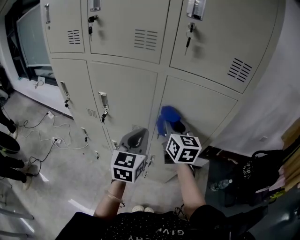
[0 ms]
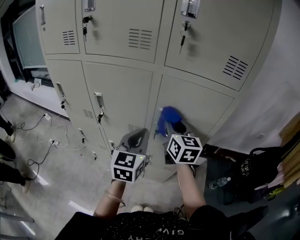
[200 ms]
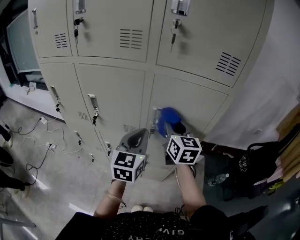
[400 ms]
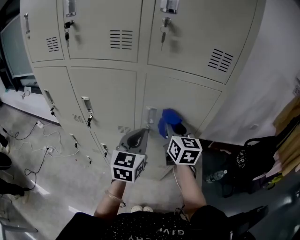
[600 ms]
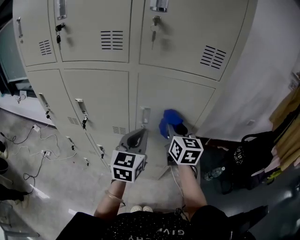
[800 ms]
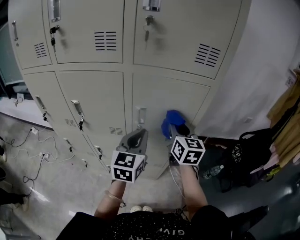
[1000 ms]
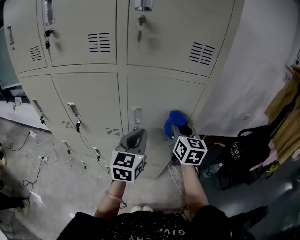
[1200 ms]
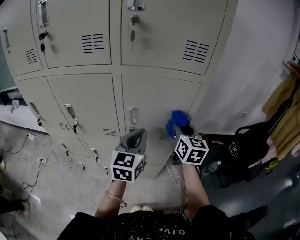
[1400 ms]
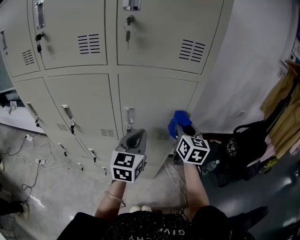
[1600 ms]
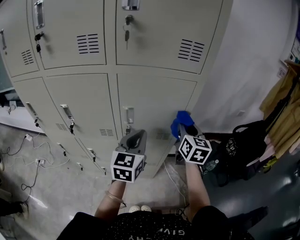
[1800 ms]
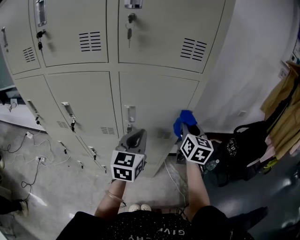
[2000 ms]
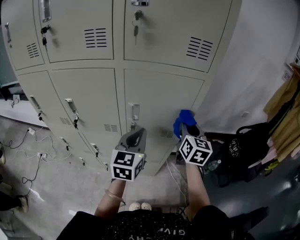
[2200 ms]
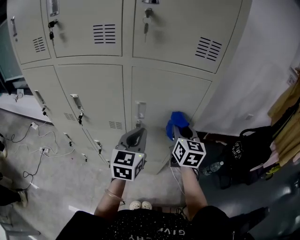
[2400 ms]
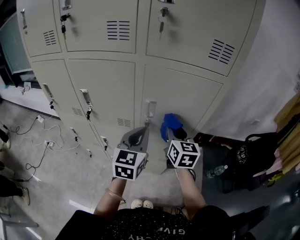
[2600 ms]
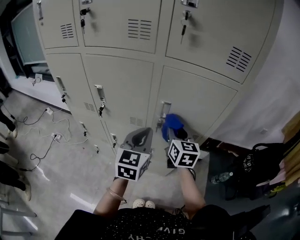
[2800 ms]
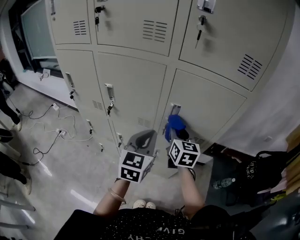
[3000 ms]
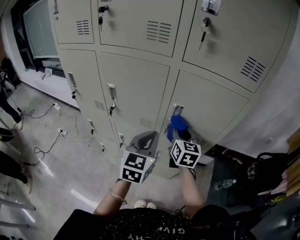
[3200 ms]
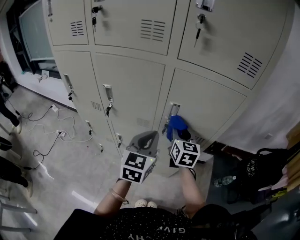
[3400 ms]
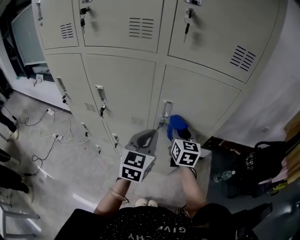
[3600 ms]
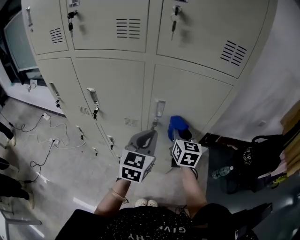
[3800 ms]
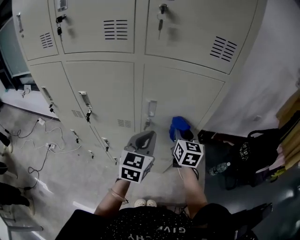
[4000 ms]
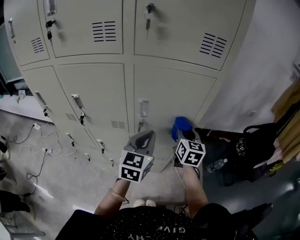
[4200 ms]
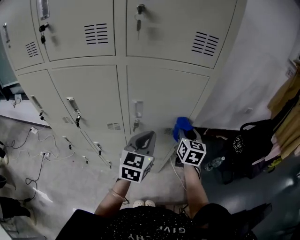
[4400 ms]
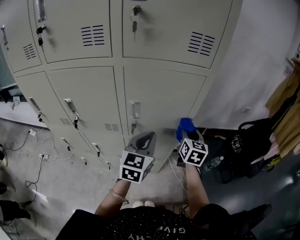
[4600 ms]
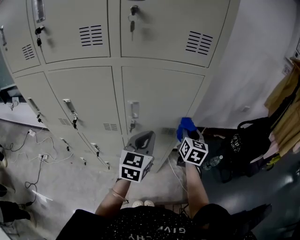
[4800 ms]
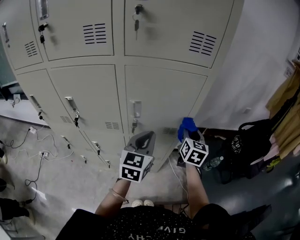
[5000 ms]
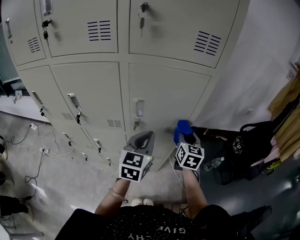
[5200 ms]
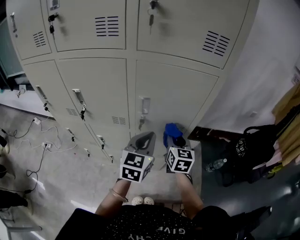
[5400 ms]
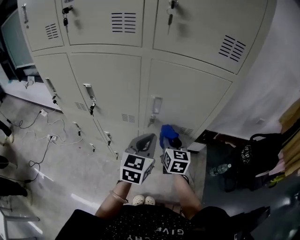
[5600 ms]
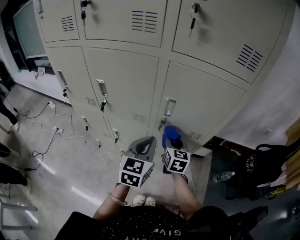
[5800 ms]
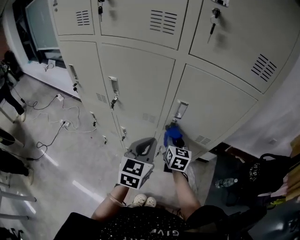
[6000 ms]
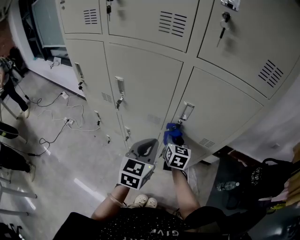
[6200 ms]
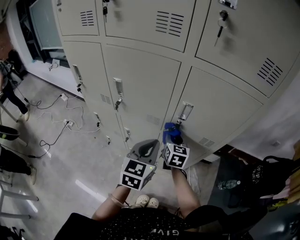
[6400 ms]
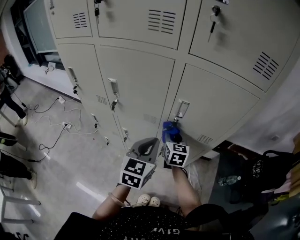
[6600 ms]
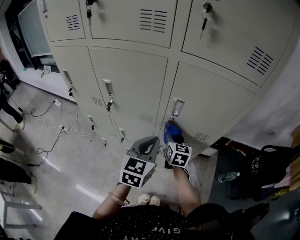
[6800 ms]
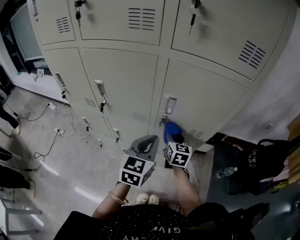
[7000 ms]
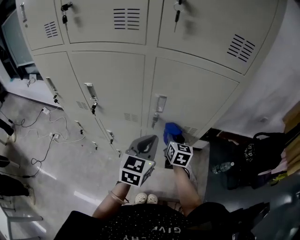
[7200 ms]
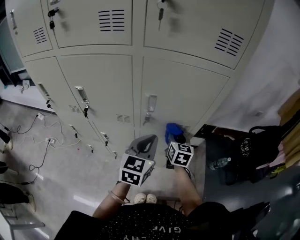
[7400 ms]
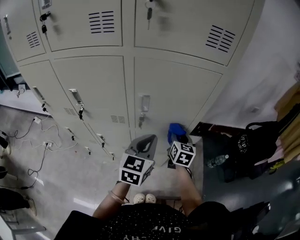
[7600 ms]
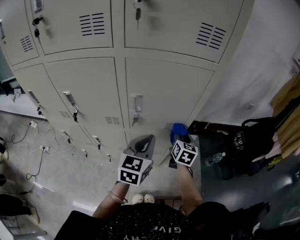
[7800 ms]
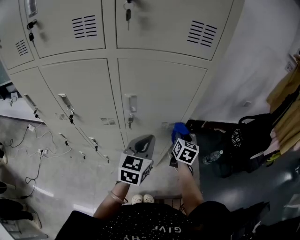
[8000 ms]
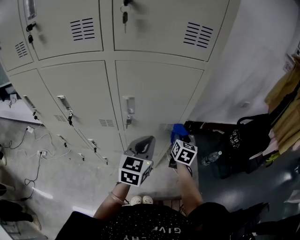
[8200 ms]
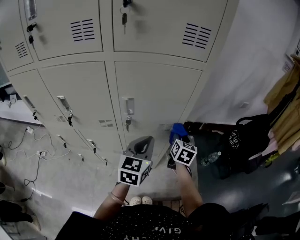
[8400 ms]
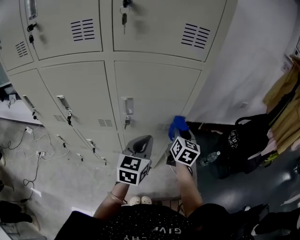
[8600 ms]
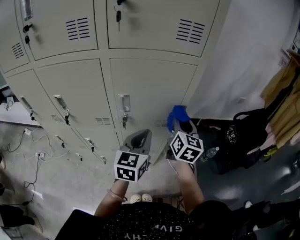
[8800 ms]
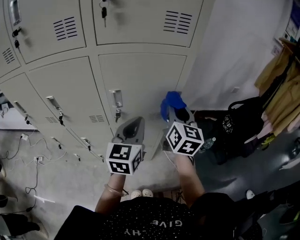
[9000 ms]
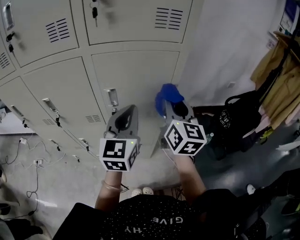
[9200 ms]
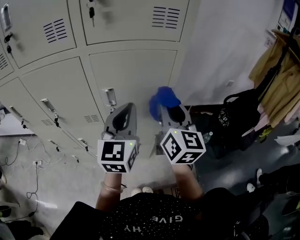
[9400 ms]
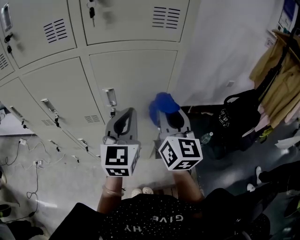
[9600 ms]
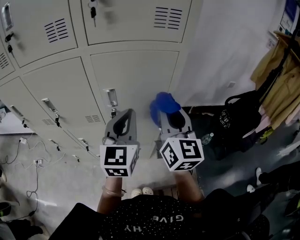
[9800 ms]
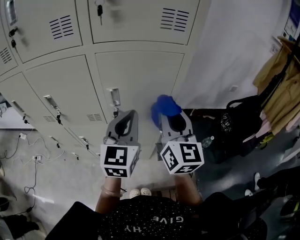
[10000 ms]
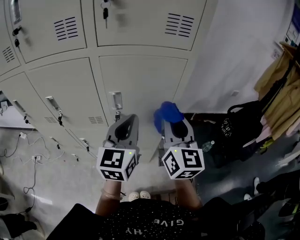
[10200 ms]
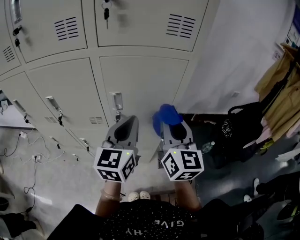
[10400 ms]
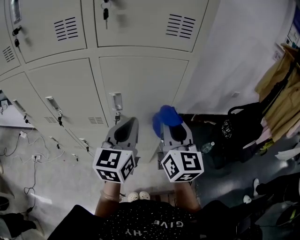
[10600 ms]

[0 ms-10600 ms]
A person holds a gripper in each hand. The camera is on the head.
0 ms to 1600 ms: The left gripper goes about 10 cm to the right, while the right gripper moves to the right, some 20 cm, and swivels approximately 20 degrees.
1600 ms to 3000 ms: The left gripper shifts some 10 cm to the left, while the right gripper goes some 20 cm to the left.
3000 ms to 4600 ms: The right gripper shifts about 20 cm to the right, and turns by about 20 degrees. The left gripper moves to the right, about 10 cm.
4600 ms to 6000 ms: The right gripper goes approximately 20 cm to the left, and turns by approximately 20 degrees. The left gripper moves to the left and backward, some 15 cm.
6000 ms to 7600 ms: Both grippers travel together to the right, approximately 15 cm.
7600 ms to 9000 ms: The right gripper heads upward, covering approximately 20 cm, and swivels about 20 degrees, while the left gripper shifts some 5 cm upward.
9000 ms to 10600 ms: The right gripper travels backward by some 5 cm.

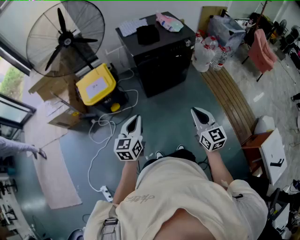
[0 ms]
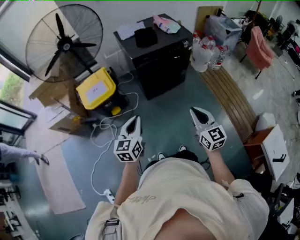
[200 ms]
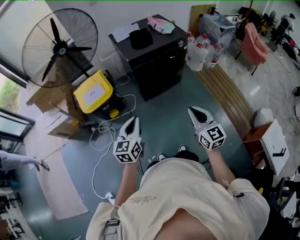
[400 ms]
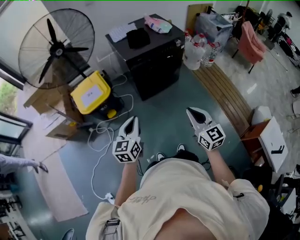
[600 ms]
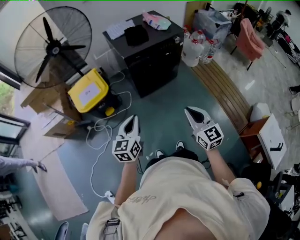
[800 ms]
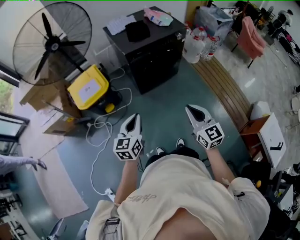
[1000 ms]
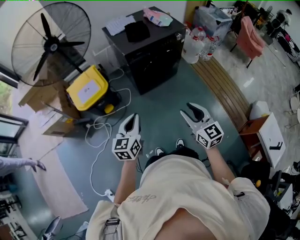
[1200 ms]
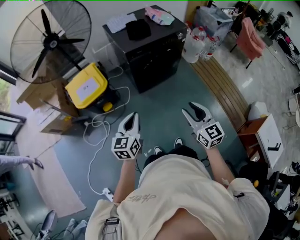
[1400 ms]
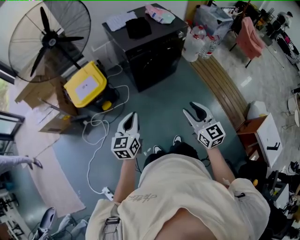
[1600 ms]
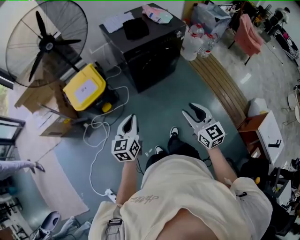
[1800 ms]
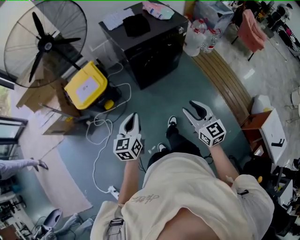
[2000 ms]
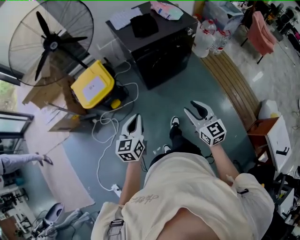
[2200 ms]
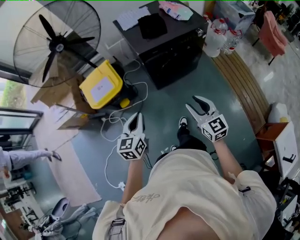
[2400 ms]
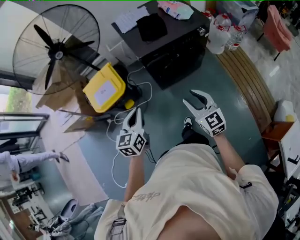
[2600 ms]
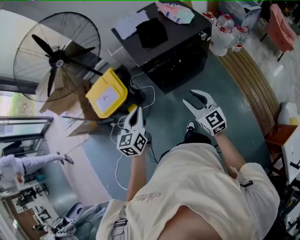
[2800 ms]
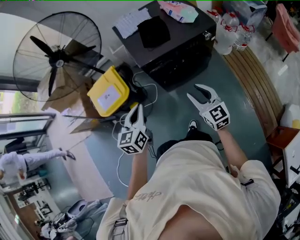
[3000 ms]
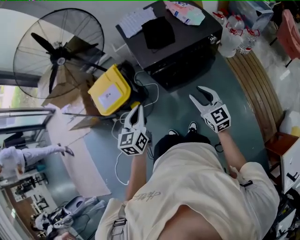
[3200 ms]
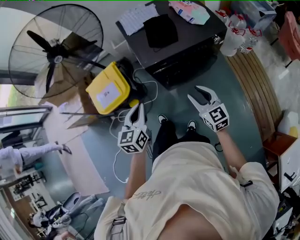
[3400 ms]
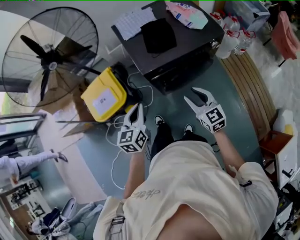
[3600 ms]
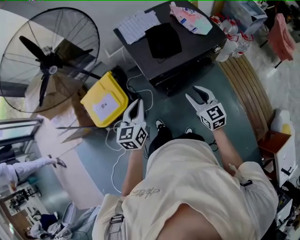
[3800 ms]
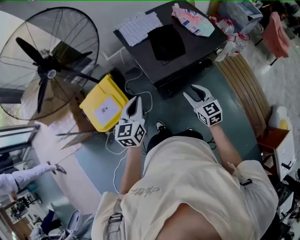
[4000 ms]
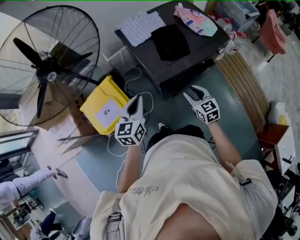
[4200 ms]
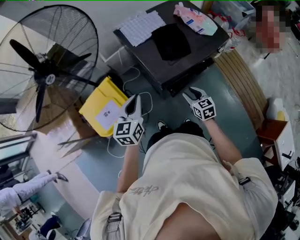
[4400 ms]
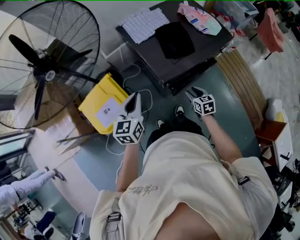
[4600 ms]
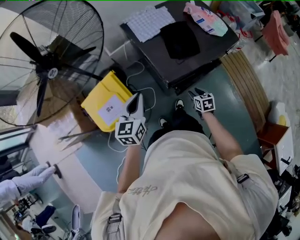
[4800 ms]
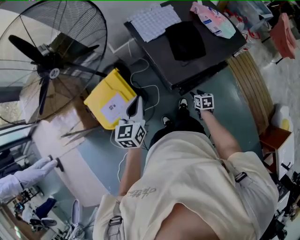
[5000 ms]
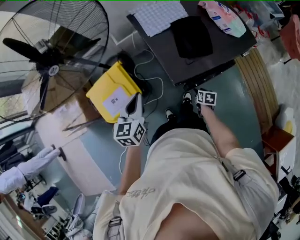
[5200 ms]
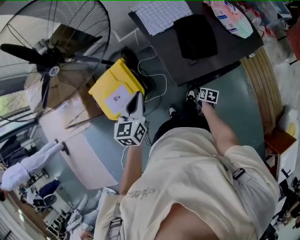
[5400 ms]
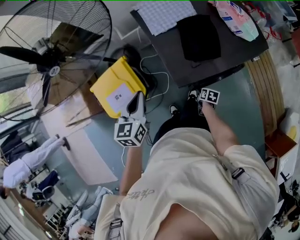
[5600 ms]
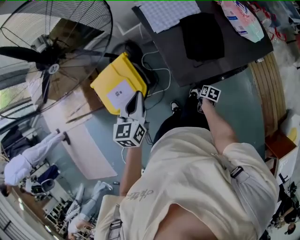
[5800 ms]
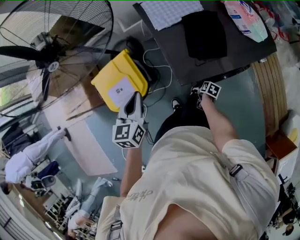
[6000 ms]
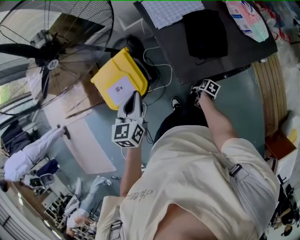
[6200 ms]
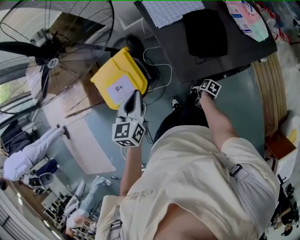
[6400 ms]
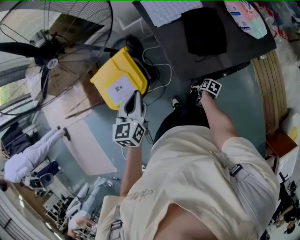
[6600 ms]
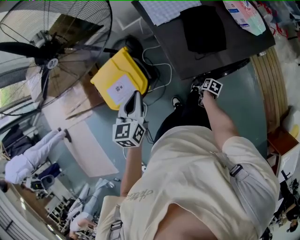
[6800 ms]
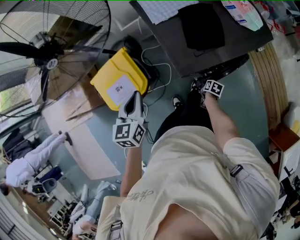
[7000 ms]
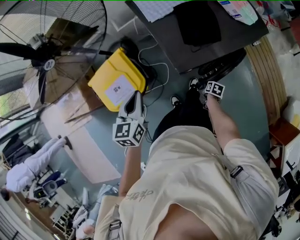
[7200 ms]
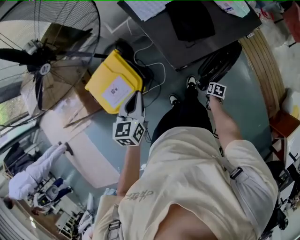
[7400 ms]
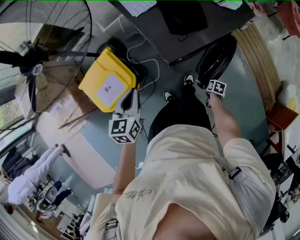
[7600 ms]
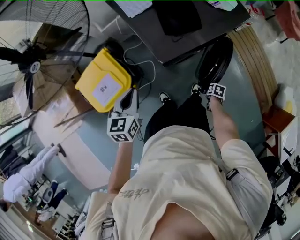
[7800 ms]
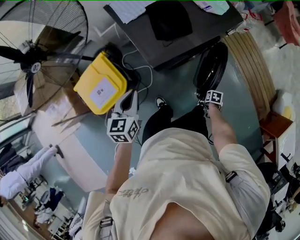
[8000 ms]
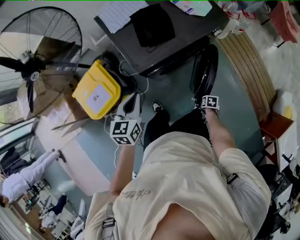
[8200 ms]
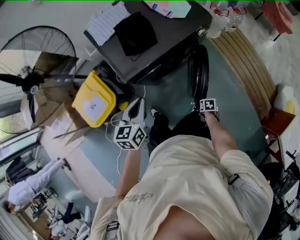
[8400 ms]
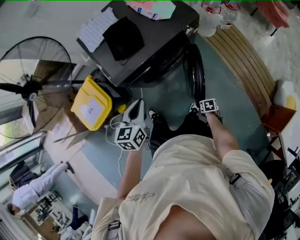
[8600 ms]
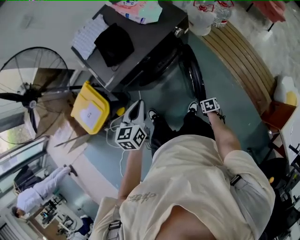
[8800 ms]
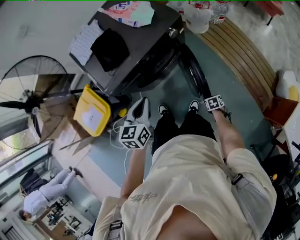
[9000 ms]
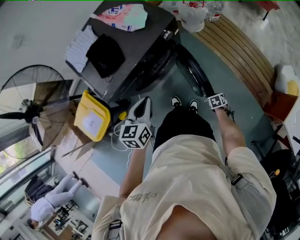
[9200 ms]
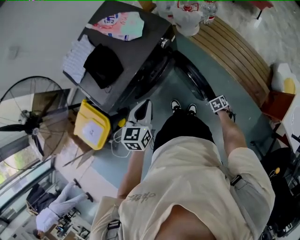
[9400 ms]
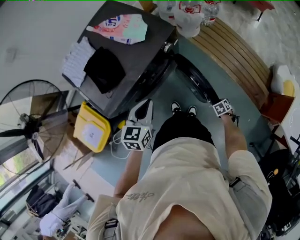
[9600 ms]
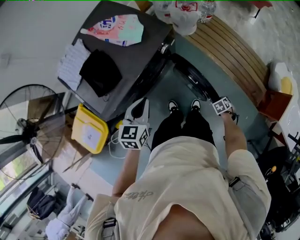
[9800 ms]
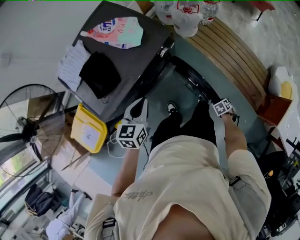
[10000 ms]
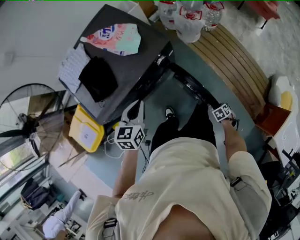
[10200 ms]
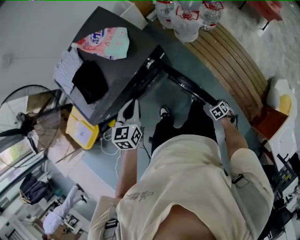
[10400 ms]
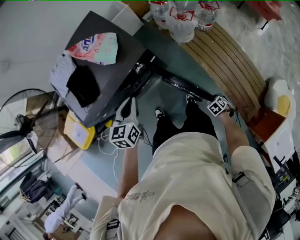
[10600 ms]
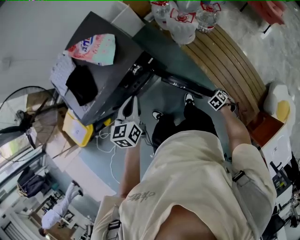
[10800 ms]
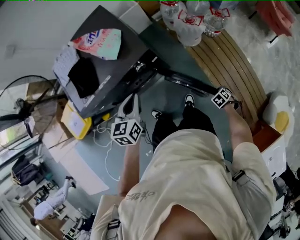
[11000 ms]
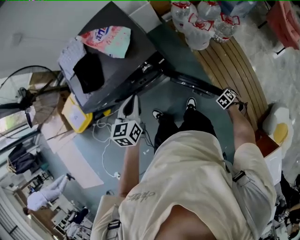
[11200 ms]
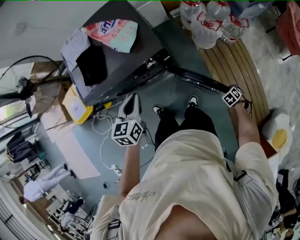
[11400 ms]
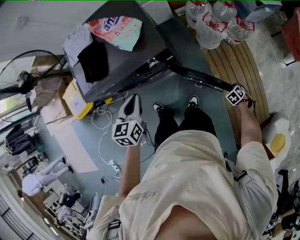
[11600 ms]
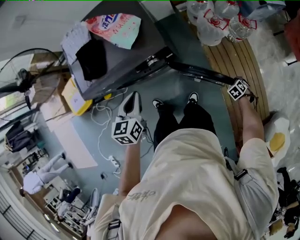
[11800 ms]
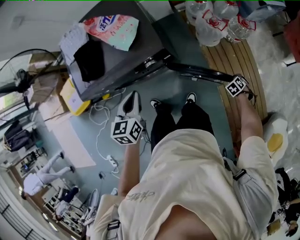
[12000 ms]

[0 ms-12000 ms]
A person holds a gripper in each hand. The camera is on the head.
0 ms to 1600 ms: The right gripper opens.
1600 ms to 3000 ms: Both grippers move forward, roughly 25 cm.
3000 ms to 4400 ms: The right gripper shifts about 25 cm forward, downward and to the left, and swivels approximately 30 degrees. Meanwhile the left gripper travels forward and to the left by some 25 cm.
4400 ms to 6000 ms: The right gripper heads downward, covering about 25 cm, and rolls clockwise, seen from behind, by about 50 degrees. The left gripper shifts by approximately 5 cm, and rotates roughly 20 degrees.
6000 ms to 7600 ms: The right gripper shifts by about 15 cm, and closes up. Meanwhile the left gripper moves roughly 5 cm.
7600 ms to 9000 ms: The right gripper shifts by about 25 cm, and swivels approximately 30 degrees; the left gripper moves about 35 cm.
9000 ms to 10400 ms: The right gripper moves about 20 cm, and changes its angle by about 20 degrees; the left gripper shifts by approximately 20 cm.
10400 ms to 12000 ms: The left gripper ends up about 5 cm from where it was, and changes its angle by roughly 20 degrees. Meanwhile the right gripper changes place by about 30 cm, and swivels some 30 degrees.

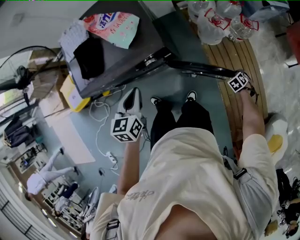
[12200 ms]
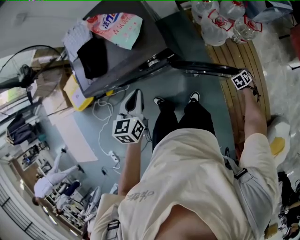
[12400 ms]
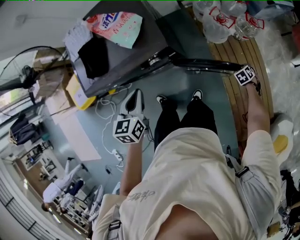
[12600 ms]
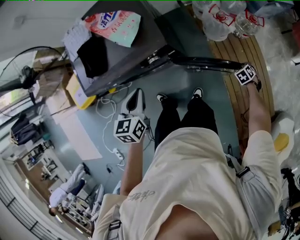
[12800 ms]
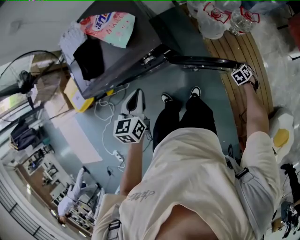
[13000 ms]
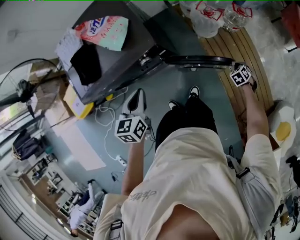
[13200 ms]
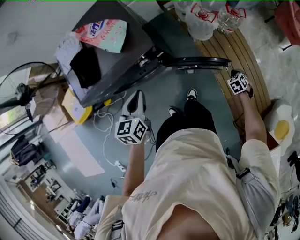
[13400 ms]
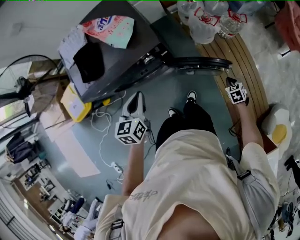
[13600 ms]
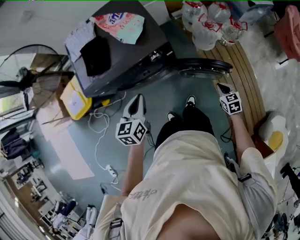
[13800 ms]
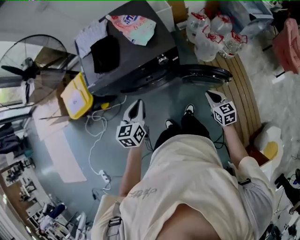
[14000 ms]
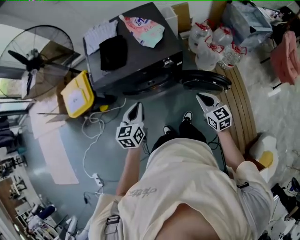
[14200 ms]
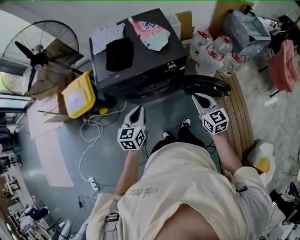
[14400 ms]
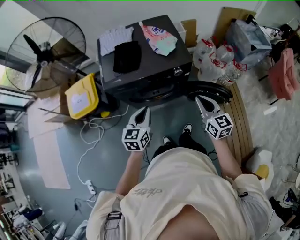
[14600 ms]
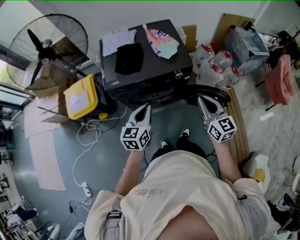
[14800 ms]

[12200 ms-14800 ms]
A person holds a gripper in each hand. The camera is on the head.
12200 ms to 13400 ms: The right gripper ends up some 5 cm from where it was.
13400 ms to 14800 ms: The right gripper heads upward, covering about 40 cm, and angles its fingers upward, by some 60 degrees. The left gripper changes place by roughly 20 cm.
